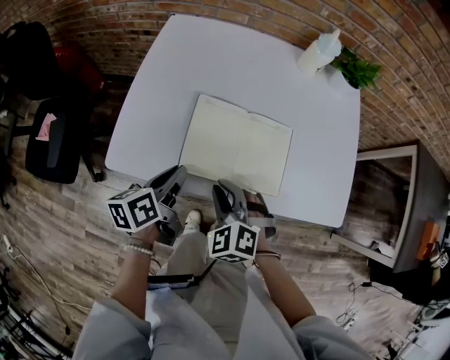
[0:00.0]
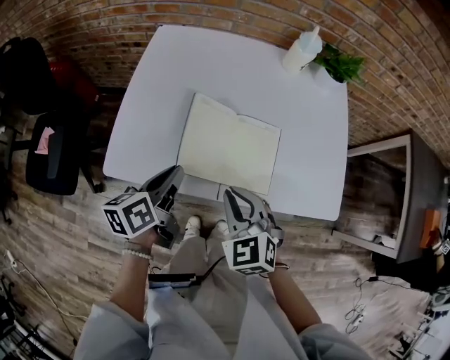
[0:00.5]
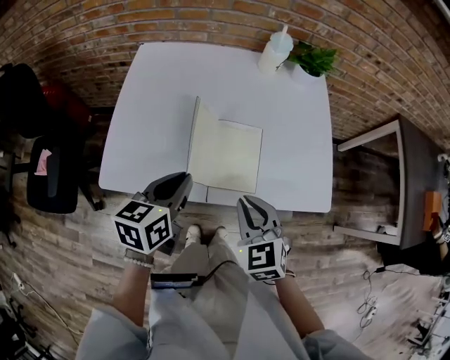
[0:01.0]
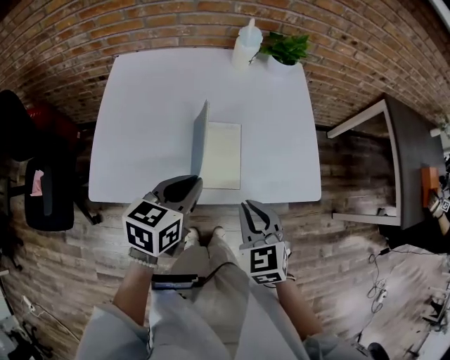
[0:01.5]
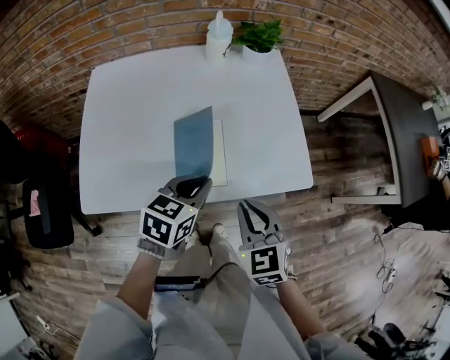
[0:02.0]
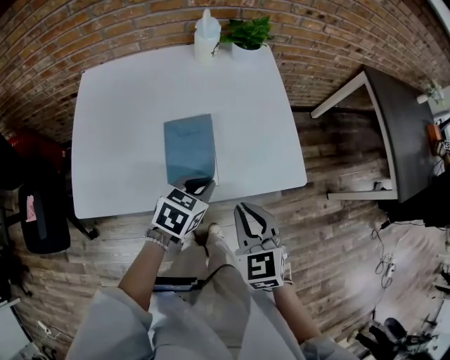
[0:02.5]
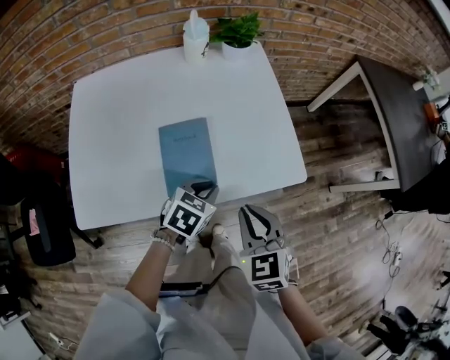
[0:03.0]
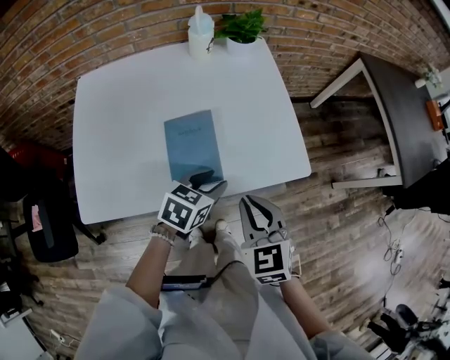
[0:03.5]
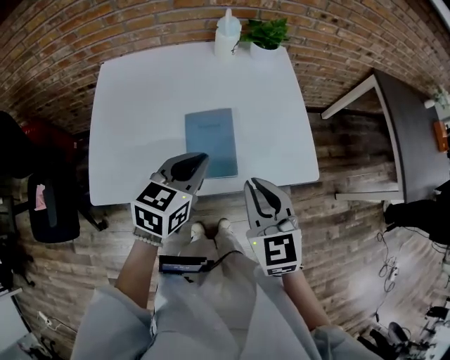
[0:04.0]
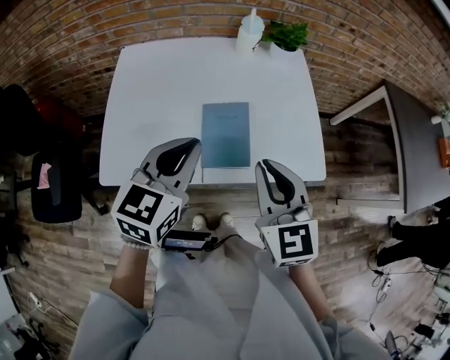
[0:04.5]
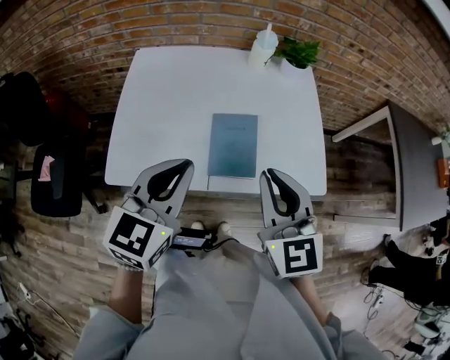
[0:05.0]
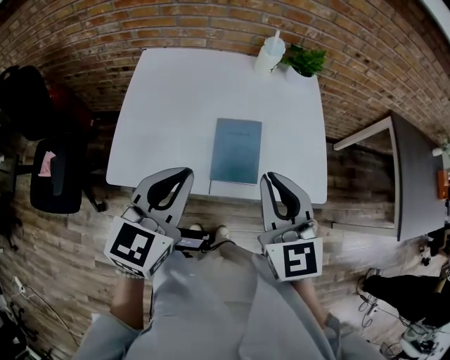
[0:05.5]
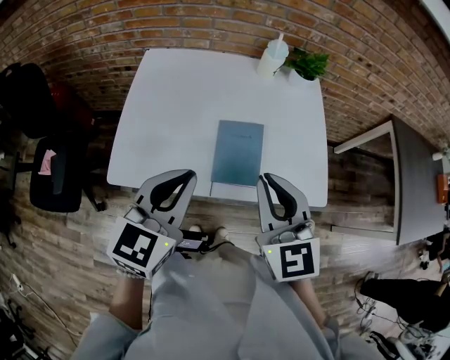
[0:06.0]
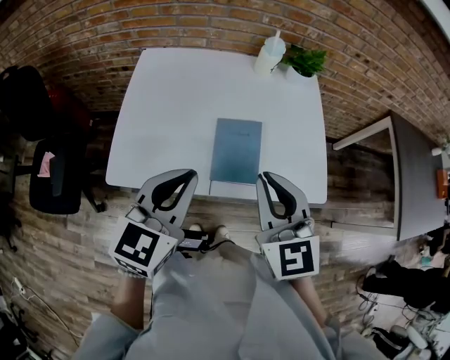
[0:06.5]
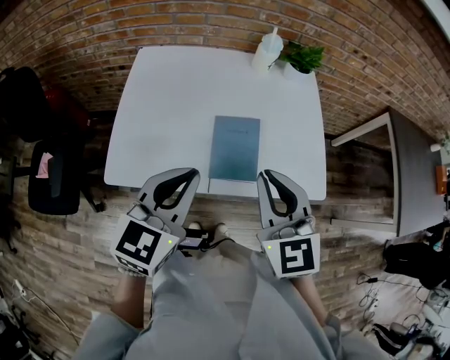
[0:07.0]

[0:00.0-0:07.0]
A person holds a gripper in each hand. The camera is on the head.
0:00.0 to 0:02.0: The right gripper shifts by some 25 cm, and turns by roughly 40 degrees. The left gripper moves some 25 cm, and rolls clockwise, seen from behind, by approximately 50 degrees.
0:02.0 to 0:03.5: The left gripper is displaced downward by roughly 5 cm, and opens up.
0:03.5 to 0:05.0: The left gripper goes roughly 30 cm upward and to the left, turns by roughly 40 degrees, and closes; the right gripper goes roughly 15 cm upward and to the left, and rotates approximately 20 degrees.
0:05.0 to 0:07.0: The grippers stay close to where they were, moving slightly.

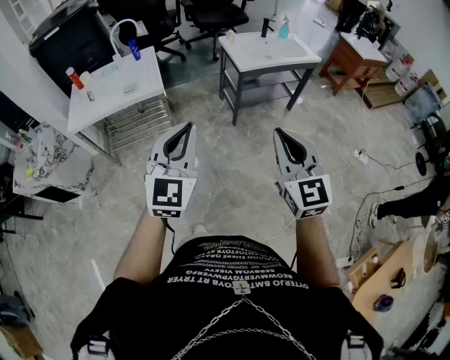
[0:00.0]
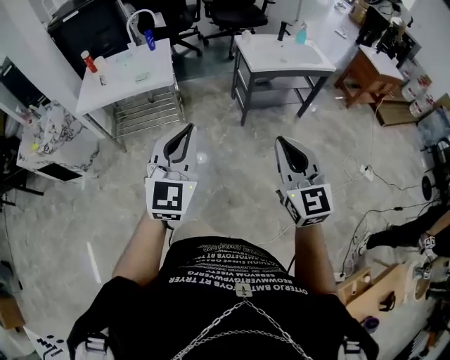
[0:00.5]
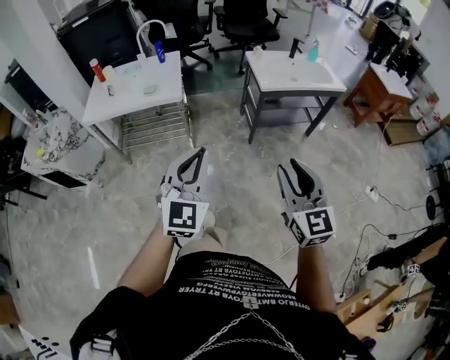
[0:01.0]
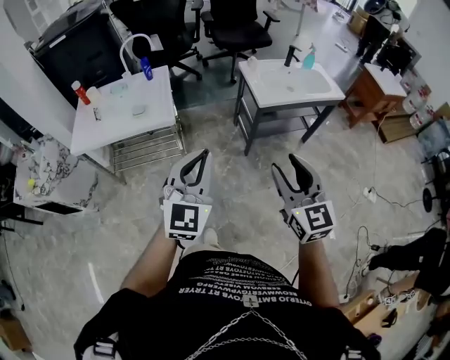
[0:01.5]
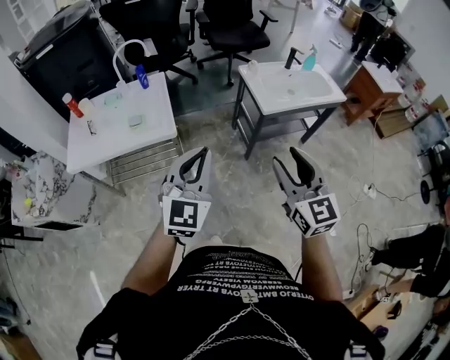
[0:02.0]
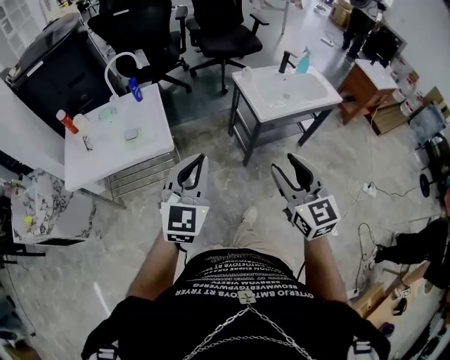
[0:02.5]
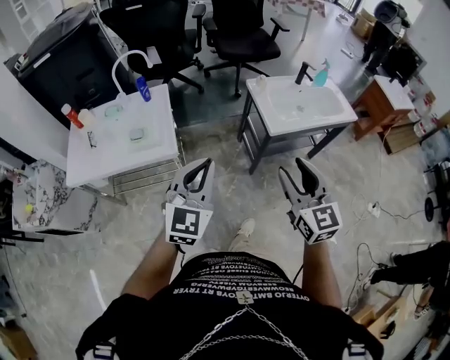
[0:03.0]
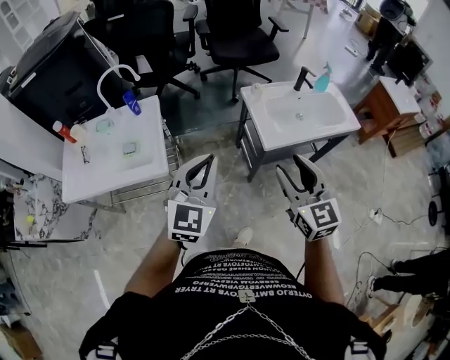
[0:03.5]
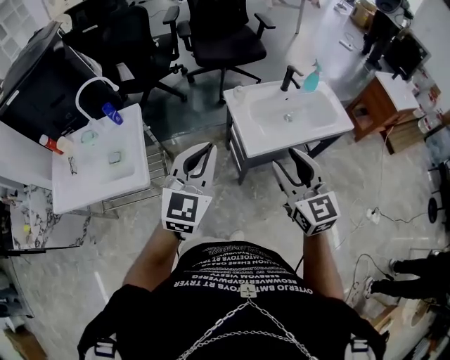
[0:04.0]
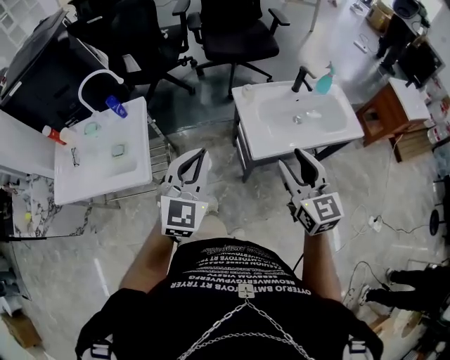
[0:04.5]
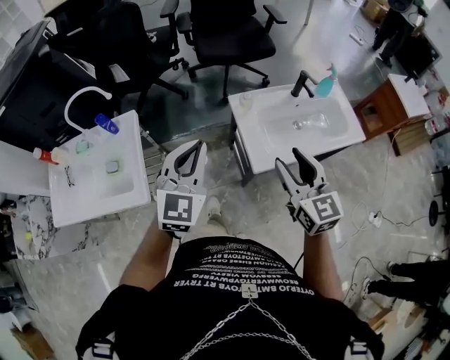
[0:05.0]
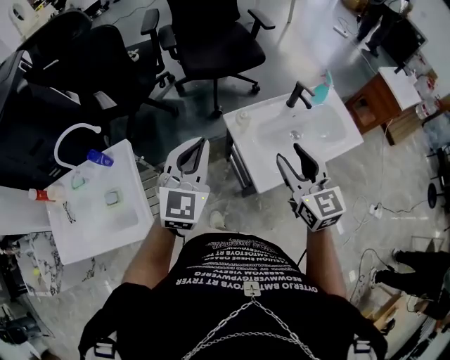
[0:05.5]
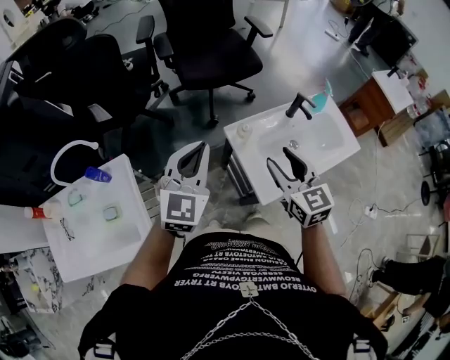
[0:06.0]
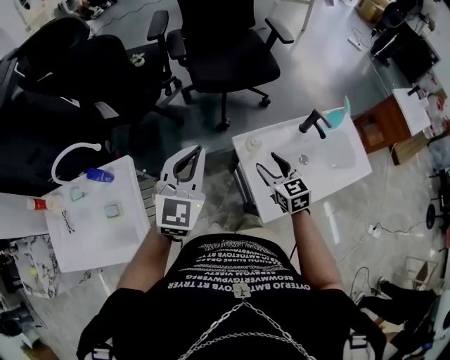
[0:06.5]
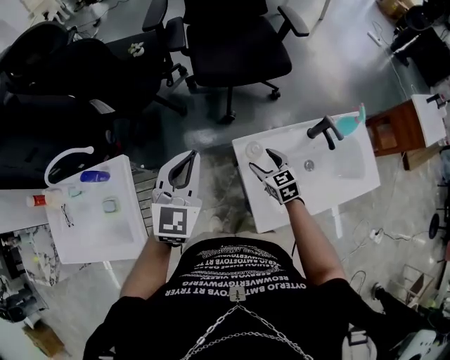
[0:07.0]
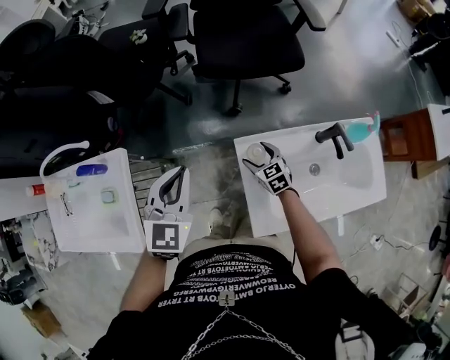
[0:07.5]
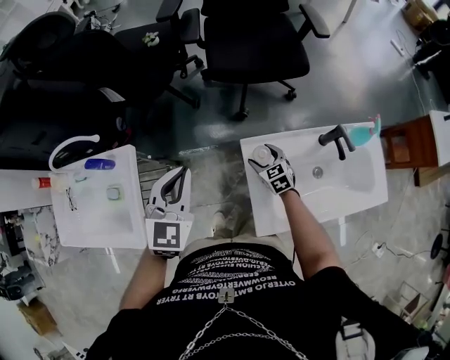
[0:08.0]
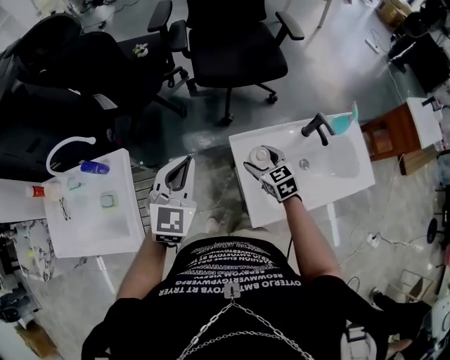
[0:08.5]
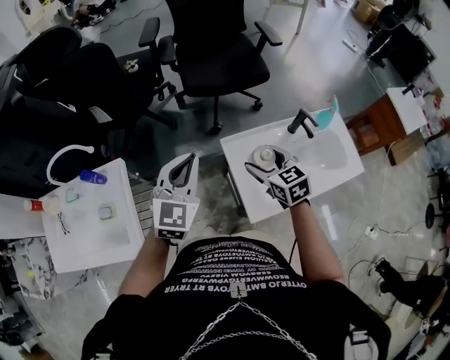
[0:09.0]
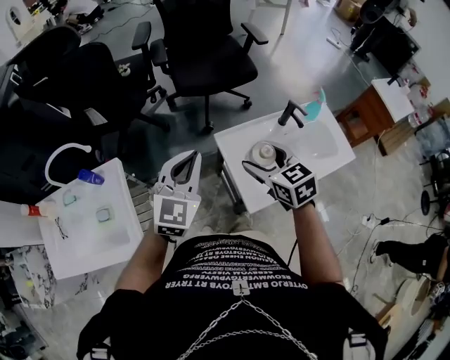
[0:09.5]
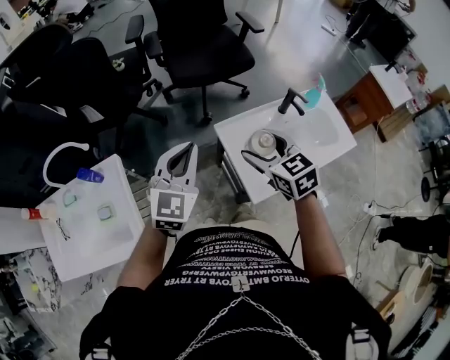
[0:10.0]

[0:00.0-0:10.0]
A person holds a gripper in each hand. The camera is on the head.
0:00.0 to 0:02.0: The grippers both shift forward by about 30 cm. The right gripper opens.
0:02.0 to 0:04.0: Both grippers travel together forward and to the right, some 35 cm.
0:04.0 to 0:06.0: The grippers both shift forward by roughly 30 cm.
0:06.0 to 0:08.0: The right gripper shifts approximately 40 cm downward and forward, turns by approximately 30 degrees, and opens. The left gripper is displaced forward and downward by about 15 cm, and rotates about 20 degrees.
0:08.0 to 0:10.0: The left gripper is displaced backward and upward by roughly 10 cm, and turns by approximately 20 degrees; the right gripper shifts some 35 cm upward and backward.

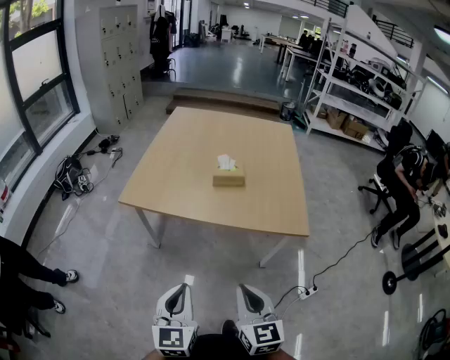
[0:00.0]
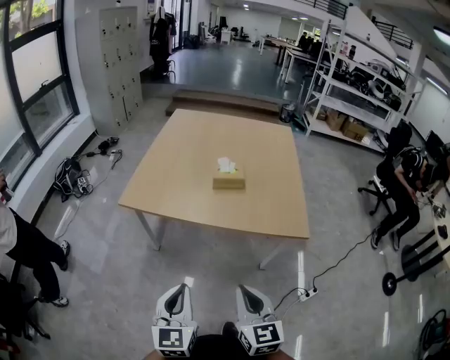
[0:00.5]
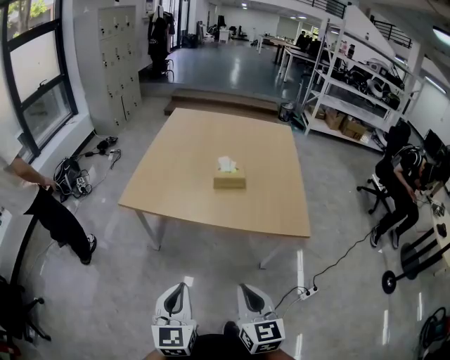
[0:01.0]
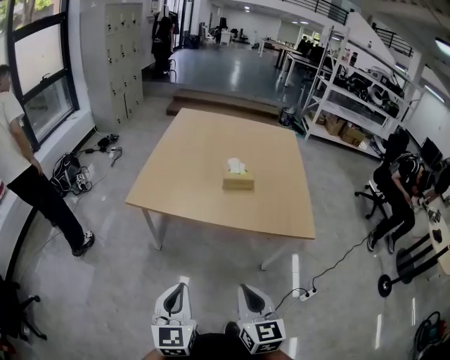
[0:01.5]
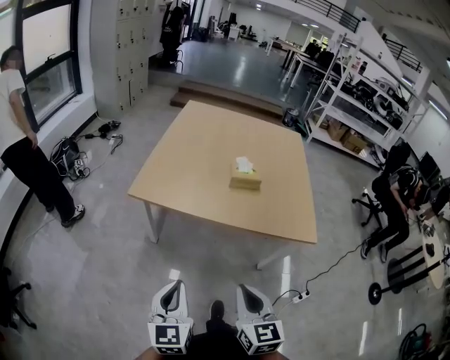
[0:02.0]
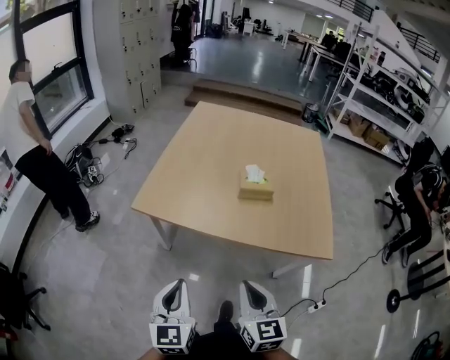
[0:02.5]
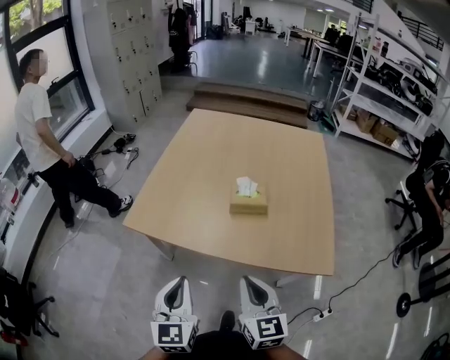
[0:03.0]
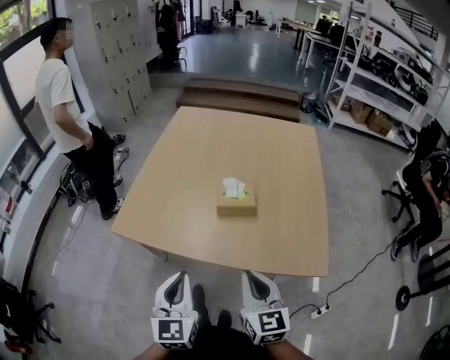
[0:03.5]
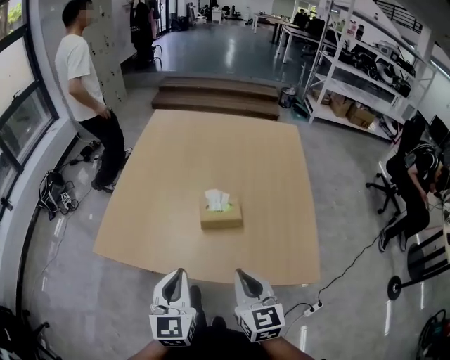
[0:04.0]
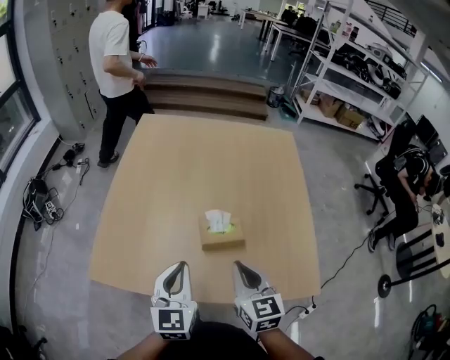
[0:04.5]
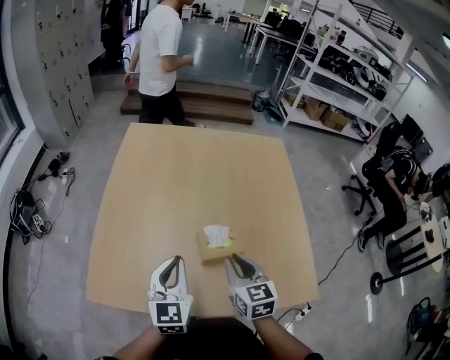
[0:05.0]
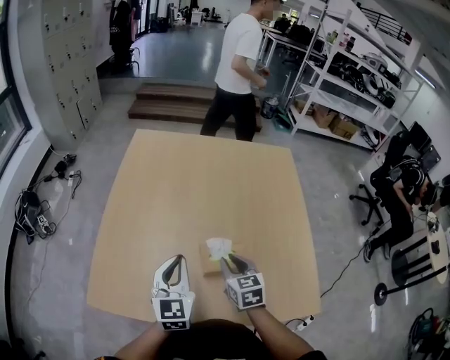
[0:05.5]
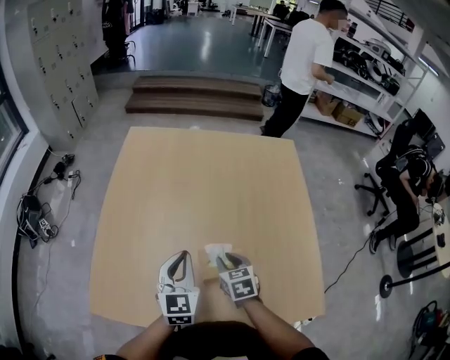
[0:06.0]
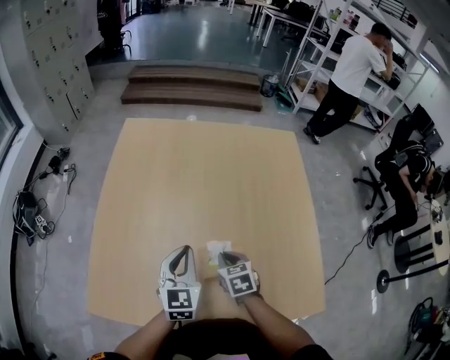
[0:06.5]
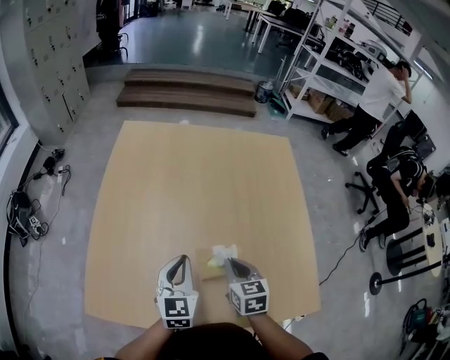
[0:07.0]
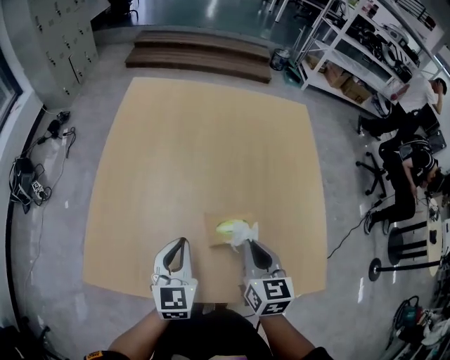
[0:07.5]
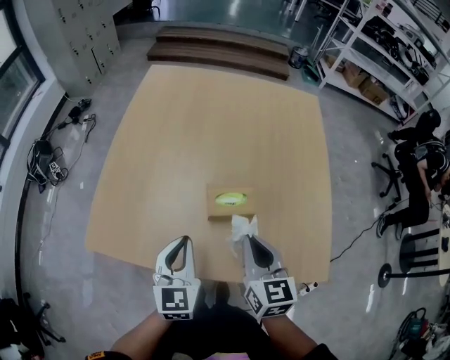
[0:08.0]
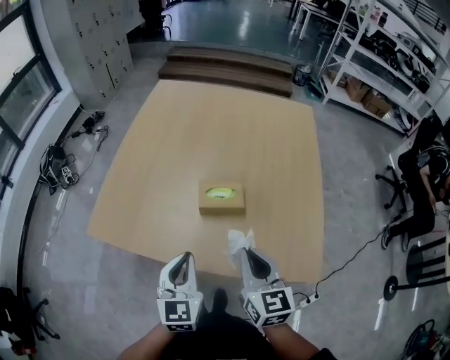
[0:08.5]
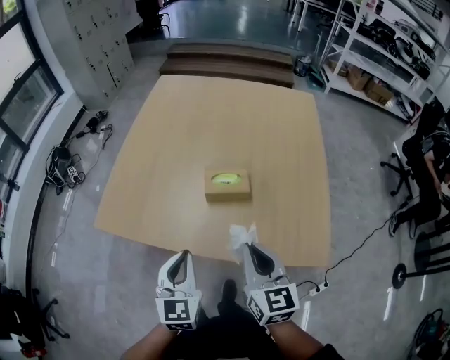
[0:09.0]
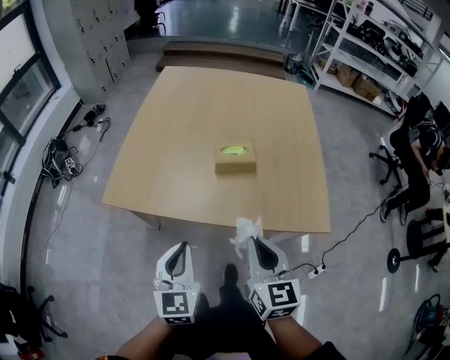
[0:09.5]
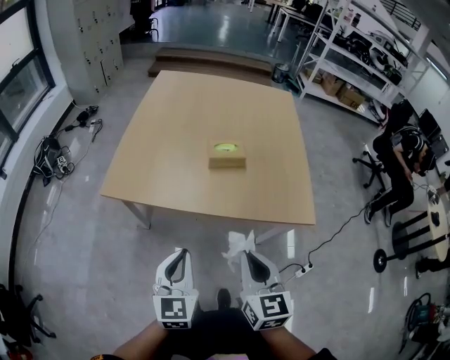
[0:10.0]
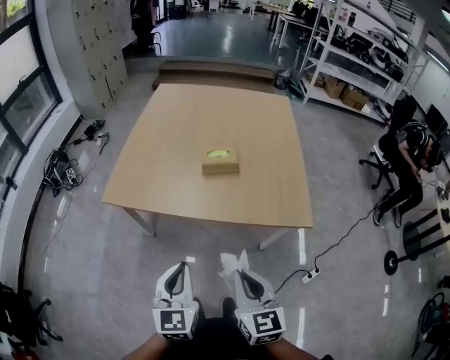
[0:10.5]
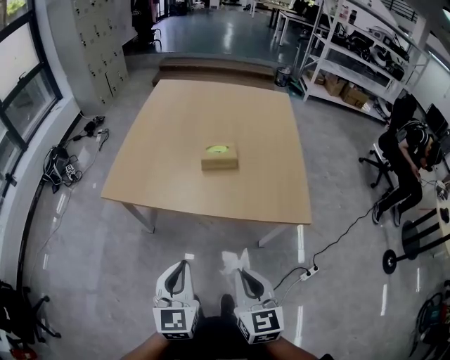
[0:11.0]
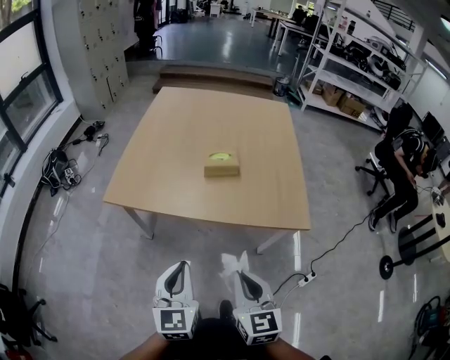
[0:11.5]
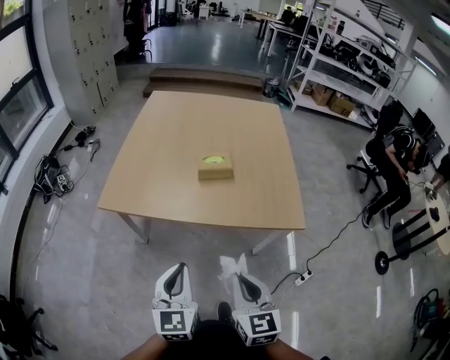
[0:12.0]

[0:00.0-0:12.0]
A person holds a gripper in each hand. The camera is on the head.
0:00.0 to 0:02.0: The grippers both shift to the left by approximately 10 cm.
0:02.0 to 0:04.0: Both grippers travel together forward and to the right, roughly 30 cm.
0:04.0 to 0:06.0: The left gripper heads forward, covering roughly 25 cm. The right gripper shifts about 30 cm forward and downward, changes its angle by approximately 30 degrees, and opens.
0:06.0 to 0:08.0: The left gripper shifts about 15 cm backward. Meanwhile the right gripper is displaced backward and upward by some 20 cm, changes its angle by approximately 20 degrees, and closes its fingers.
0:08.0 to 0:10.0: The two grippers go approximately 30 cm backward.
0:10.0 to 0:12.0: The right gripper moves backward, roughly 5 cm.
